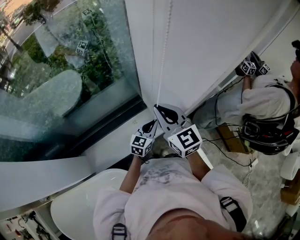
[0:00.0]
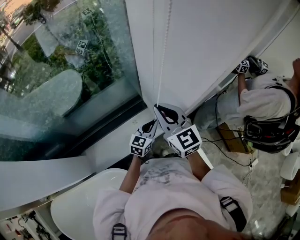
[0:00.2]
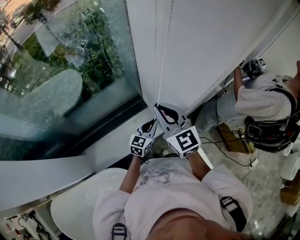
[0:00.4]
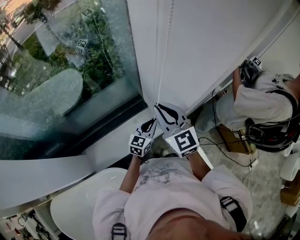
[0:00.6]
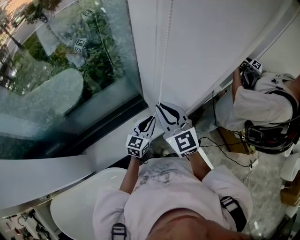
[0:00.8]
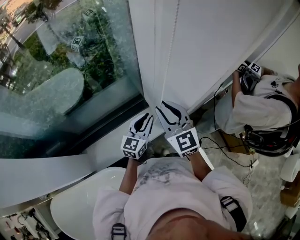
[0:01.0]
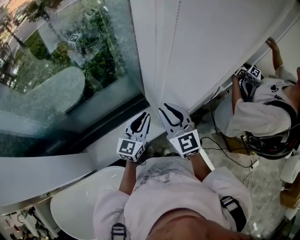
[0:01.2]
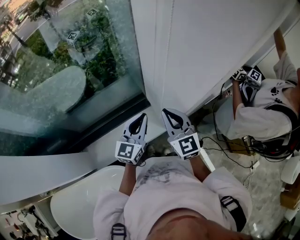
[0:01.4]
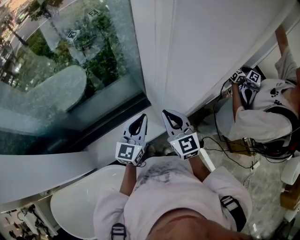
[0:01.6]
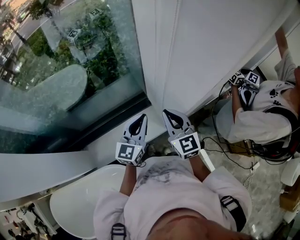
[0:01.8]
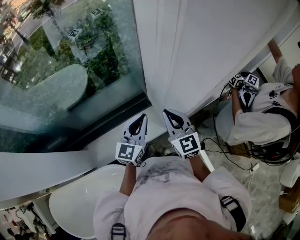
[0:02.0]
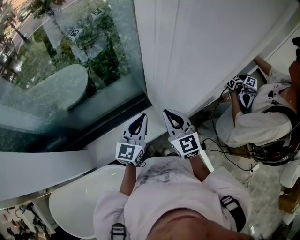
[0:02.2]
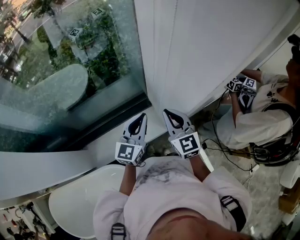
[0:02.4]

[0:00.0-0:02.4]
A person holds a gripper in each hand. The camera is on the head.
0:00.0 to 0:01.2: The left gripper shifts some 15 cm upward and to the left.
0:01.2 to 0:02.4: The grippers make only small movements.

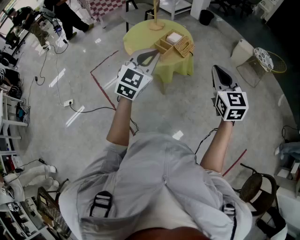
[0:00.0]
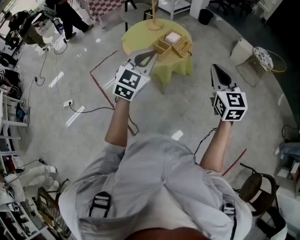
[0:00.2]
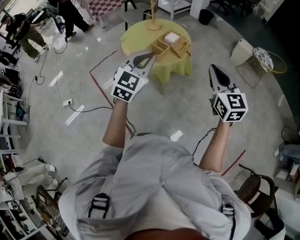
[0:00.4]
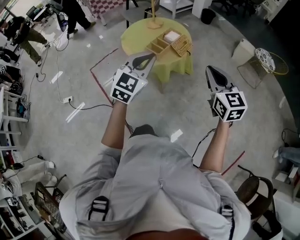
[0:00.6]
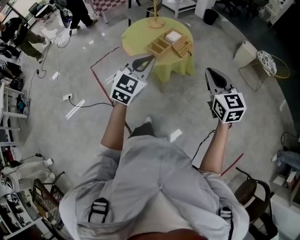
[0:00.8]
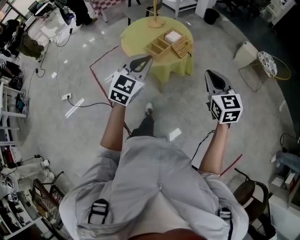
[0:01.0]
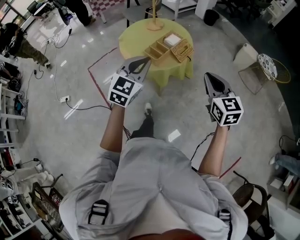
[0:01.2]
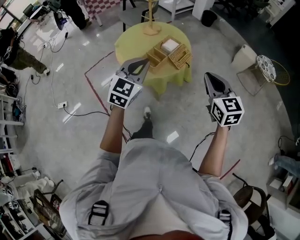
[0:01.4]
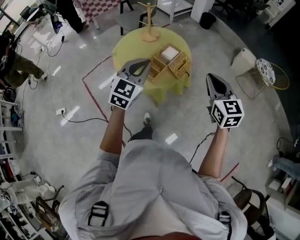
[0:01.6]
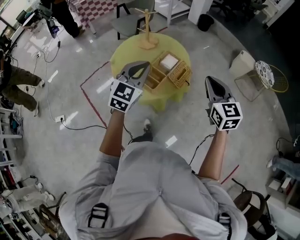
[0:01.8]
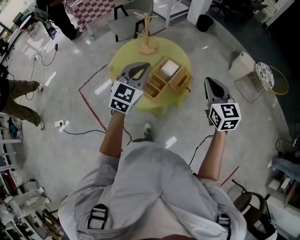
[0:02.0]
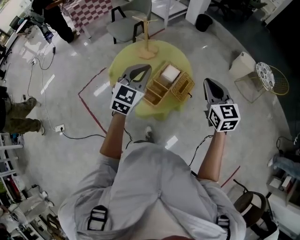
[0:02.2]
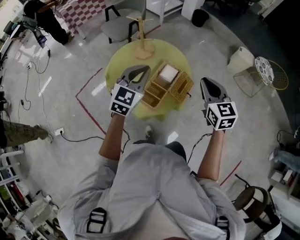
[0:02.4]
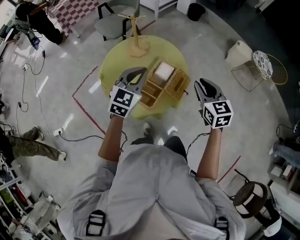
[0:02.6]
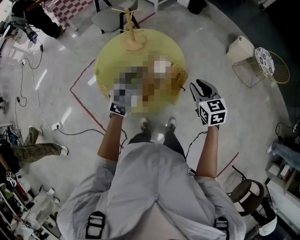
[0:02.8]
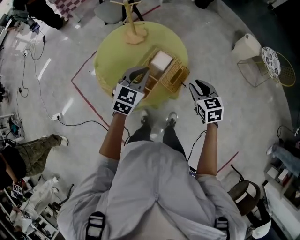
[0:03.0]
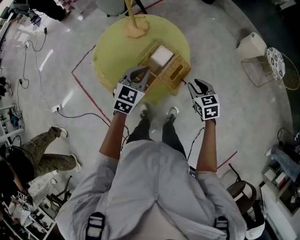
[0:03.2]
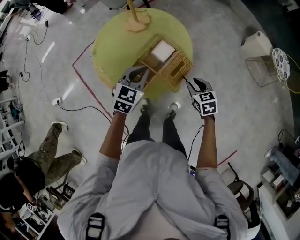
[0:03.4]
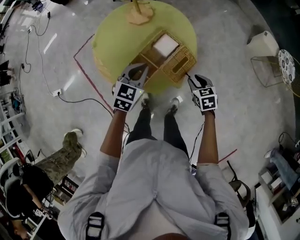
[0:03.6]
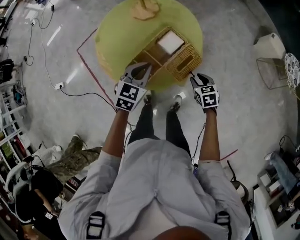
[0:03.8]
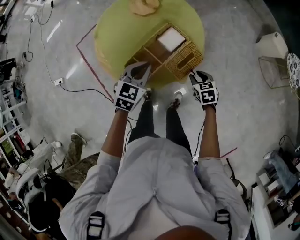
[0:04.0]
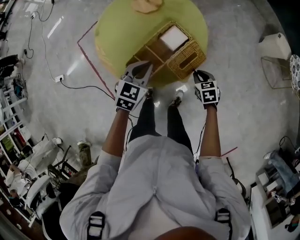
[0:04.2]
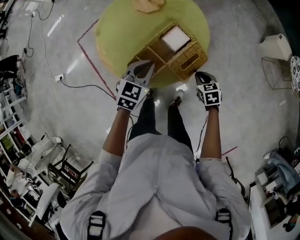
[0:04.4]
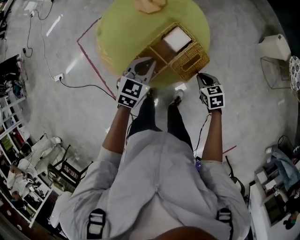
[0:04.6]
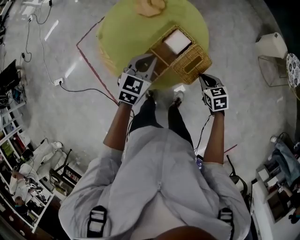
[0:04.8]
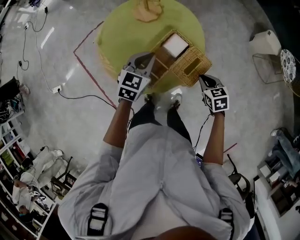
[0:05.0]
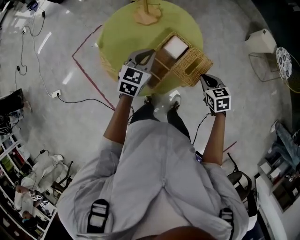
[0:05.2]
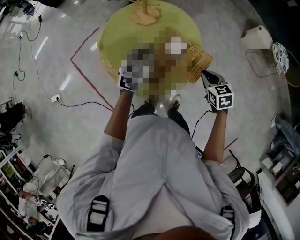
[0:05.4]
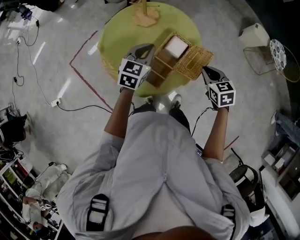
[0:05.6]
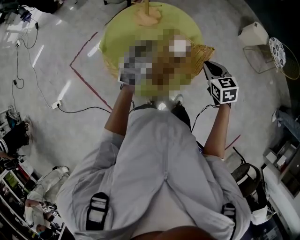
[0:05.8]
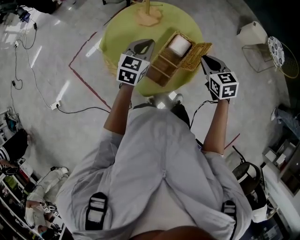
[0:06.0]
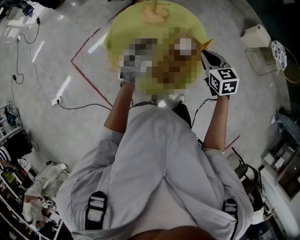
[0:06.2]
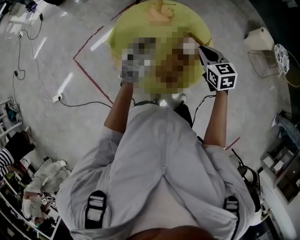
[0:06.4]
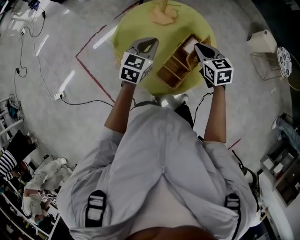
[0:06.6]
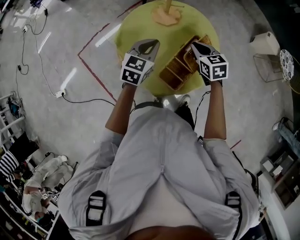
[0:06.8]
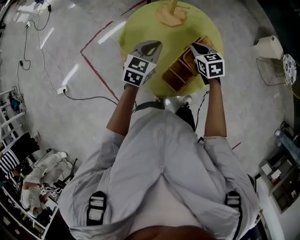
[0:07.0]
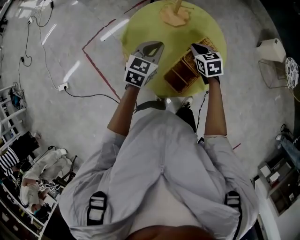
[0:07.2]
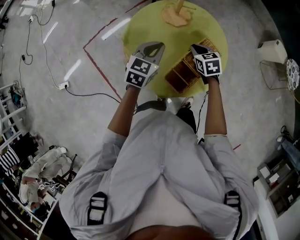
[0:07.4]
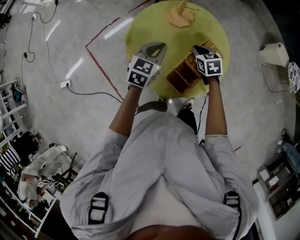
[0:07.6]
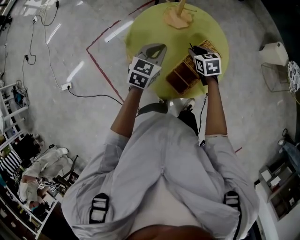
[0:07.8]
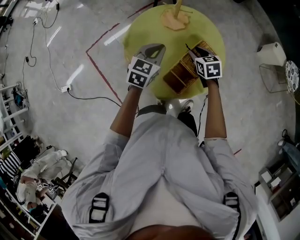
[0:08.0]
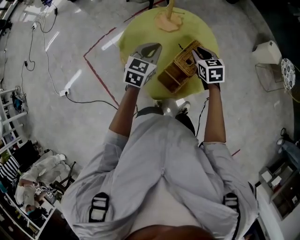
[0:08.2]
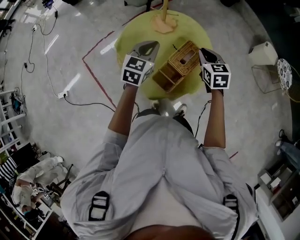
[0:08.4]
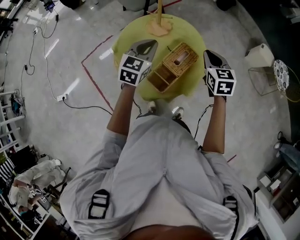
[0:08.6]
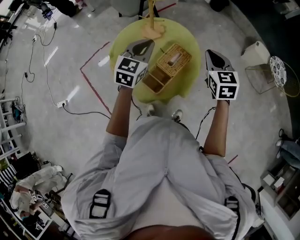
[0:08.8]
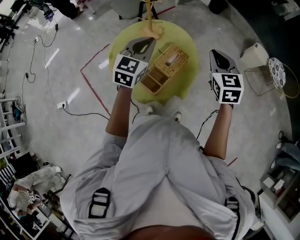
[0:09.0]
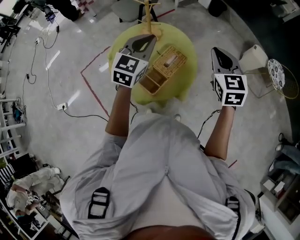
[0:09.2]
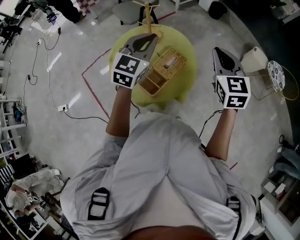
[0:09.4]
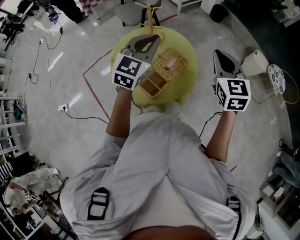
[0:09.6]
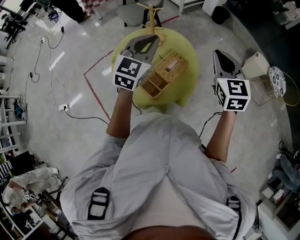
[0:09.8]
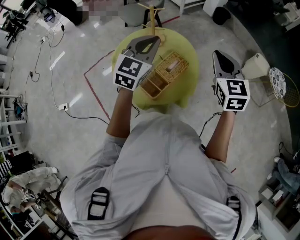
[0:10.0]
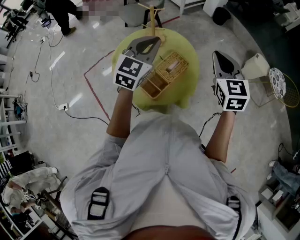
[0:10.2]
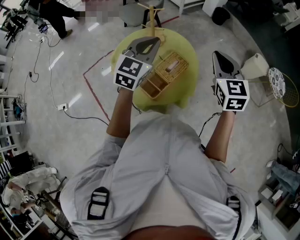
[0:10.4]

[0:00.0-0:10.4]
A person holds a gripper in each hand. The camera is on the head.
0:00.0 to 0:01.4: The right gripper is displaced forward by some 15 cm. The left gripper goes about 15 cm forward and downward.
0:01.4 to 0:03.0: The two grippers go approximately 30 cm forward and downward. The right gripper changes its angle by about 20 degrees, and opens its fingers.
0:03.0 to 0:04.4: The left gripper moves downward, about 10 cm; the right gripper moves downward, approximately 20 cm, and swivels roughly 20 degrees.
0:04.4 to 0:06.0: The right gripper shifts about 25 cm upward and to the left, and turns by approximately 20 degrees; the left gripper shifts roughly 15 cm forward, to the left and upward.
0:06.0 to 0:07.4: The right gripper is displaced to the left, downward and forward by some 20 cm. Meanwhile the left gripper travels to the left by about 5 cm.
0:07.4 to 0:09.0: The left gripper shifts some 20 cm upward and to the right. Meanwhile the right gripper goes about 35 cm upward and to the right, changes its angle by some 30 degrees, and opens, then closes again.
0:09.0 to 0:10.4: The grippers both shift upward by about 5 cm.

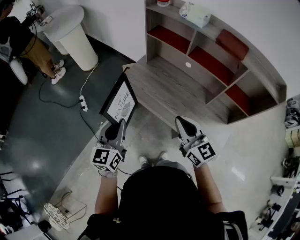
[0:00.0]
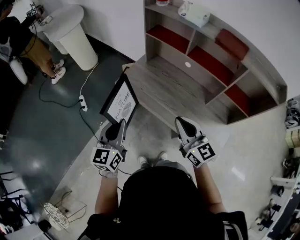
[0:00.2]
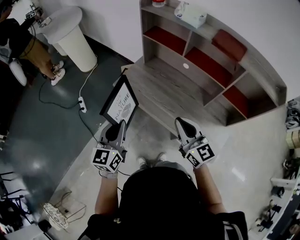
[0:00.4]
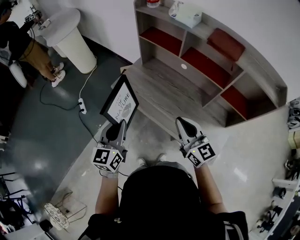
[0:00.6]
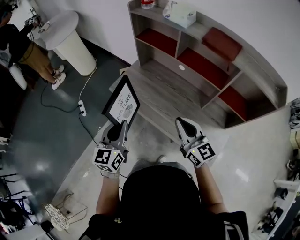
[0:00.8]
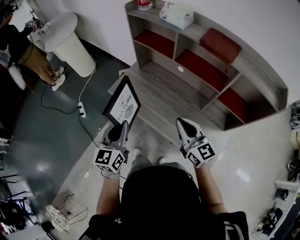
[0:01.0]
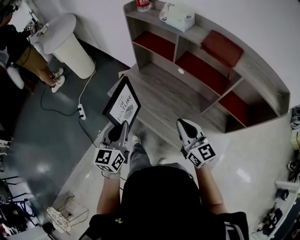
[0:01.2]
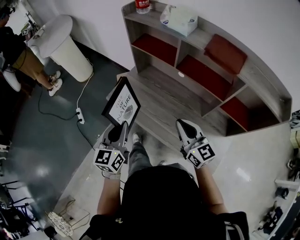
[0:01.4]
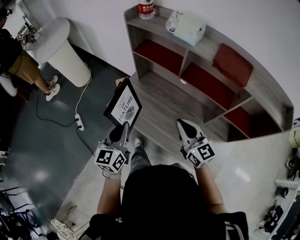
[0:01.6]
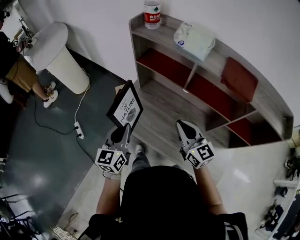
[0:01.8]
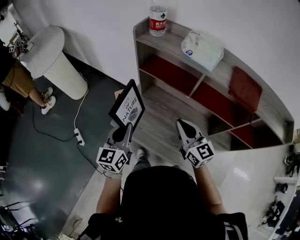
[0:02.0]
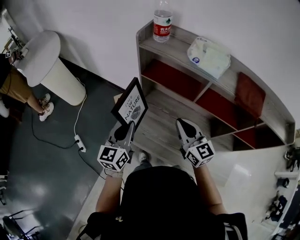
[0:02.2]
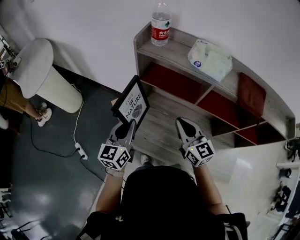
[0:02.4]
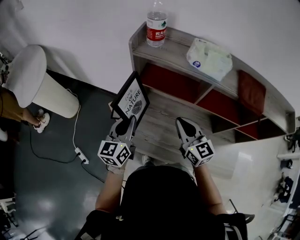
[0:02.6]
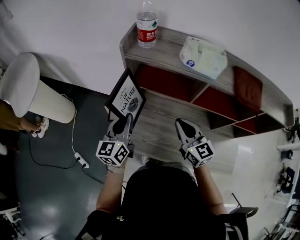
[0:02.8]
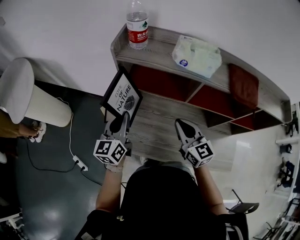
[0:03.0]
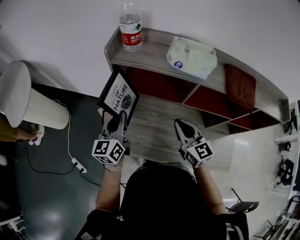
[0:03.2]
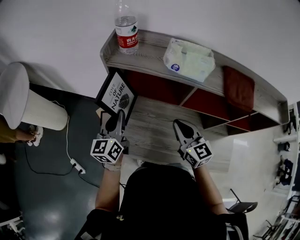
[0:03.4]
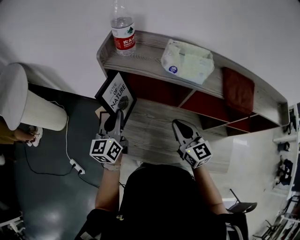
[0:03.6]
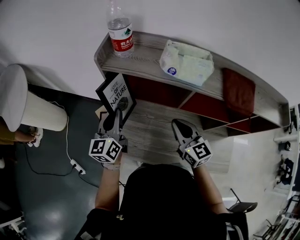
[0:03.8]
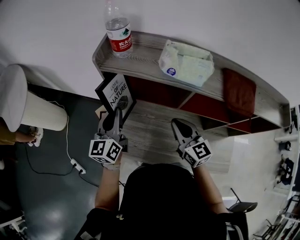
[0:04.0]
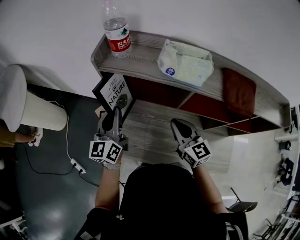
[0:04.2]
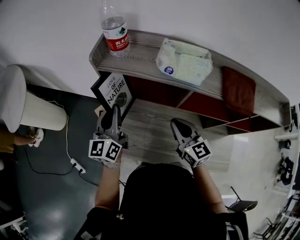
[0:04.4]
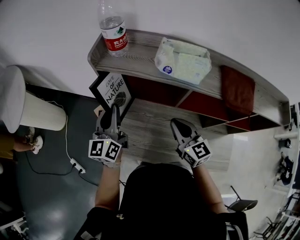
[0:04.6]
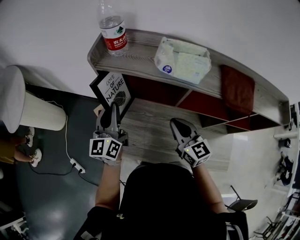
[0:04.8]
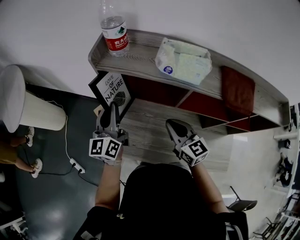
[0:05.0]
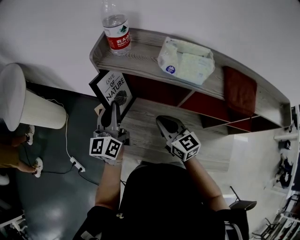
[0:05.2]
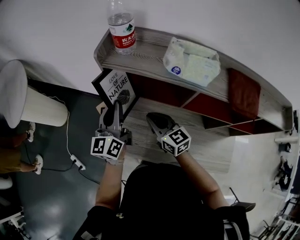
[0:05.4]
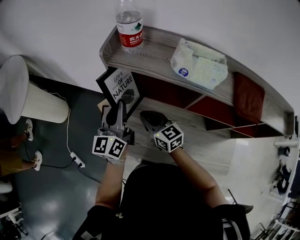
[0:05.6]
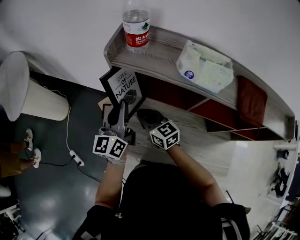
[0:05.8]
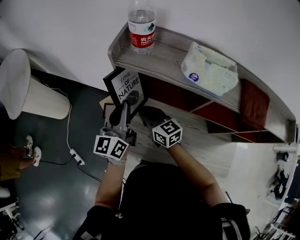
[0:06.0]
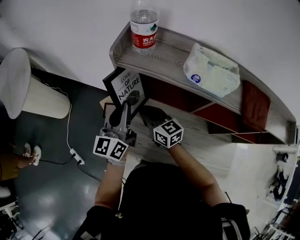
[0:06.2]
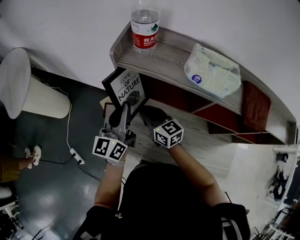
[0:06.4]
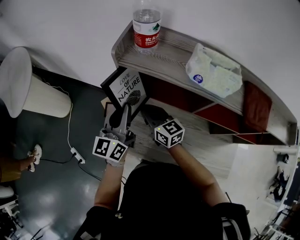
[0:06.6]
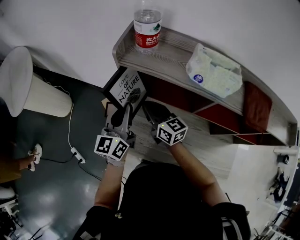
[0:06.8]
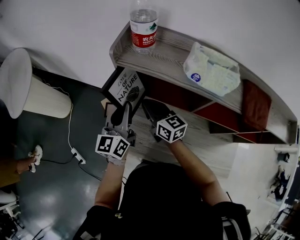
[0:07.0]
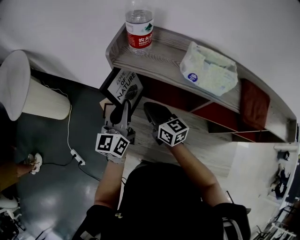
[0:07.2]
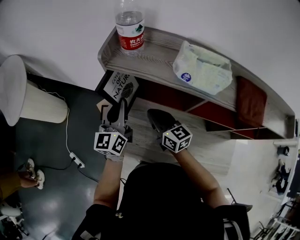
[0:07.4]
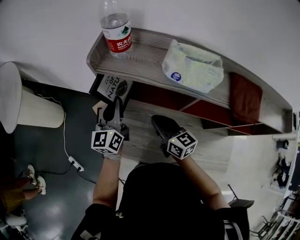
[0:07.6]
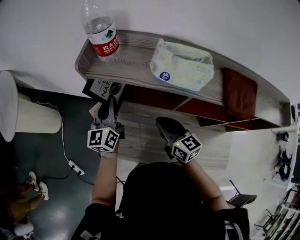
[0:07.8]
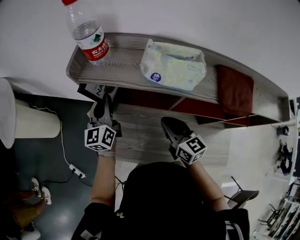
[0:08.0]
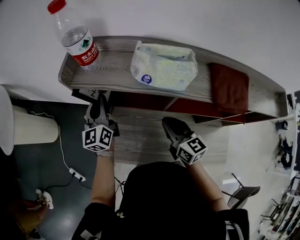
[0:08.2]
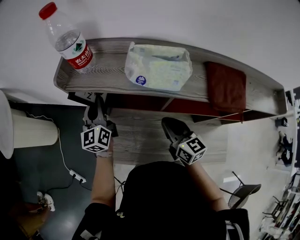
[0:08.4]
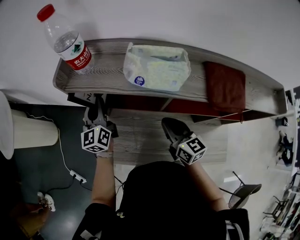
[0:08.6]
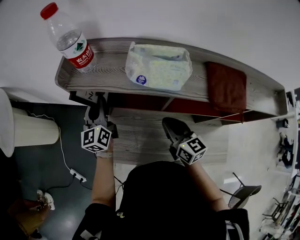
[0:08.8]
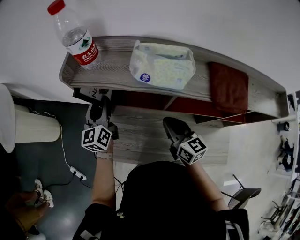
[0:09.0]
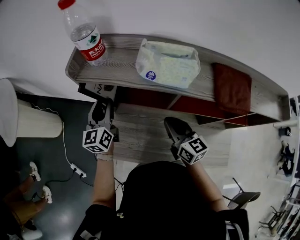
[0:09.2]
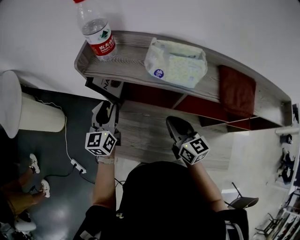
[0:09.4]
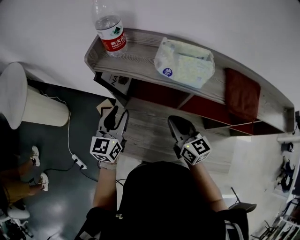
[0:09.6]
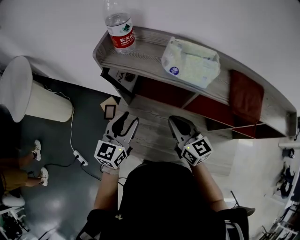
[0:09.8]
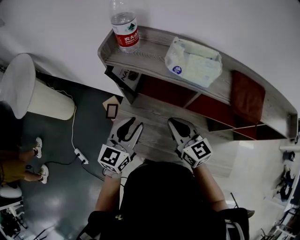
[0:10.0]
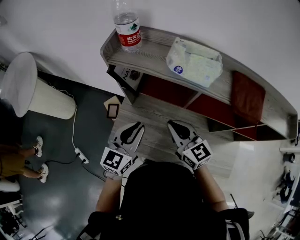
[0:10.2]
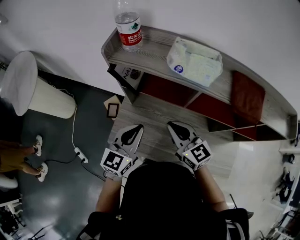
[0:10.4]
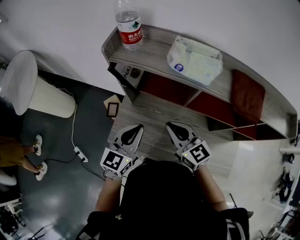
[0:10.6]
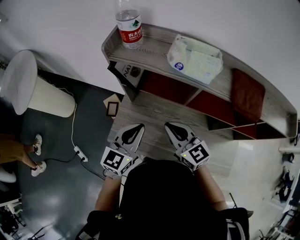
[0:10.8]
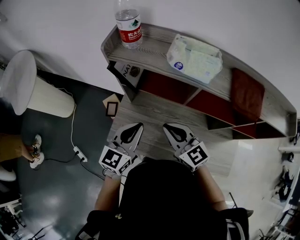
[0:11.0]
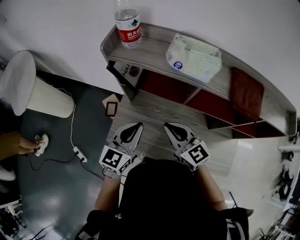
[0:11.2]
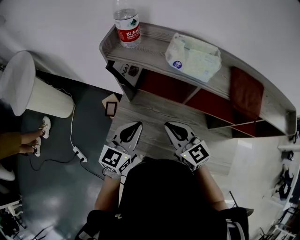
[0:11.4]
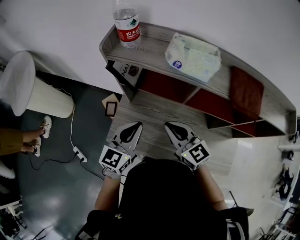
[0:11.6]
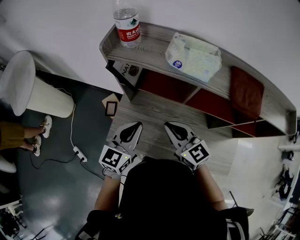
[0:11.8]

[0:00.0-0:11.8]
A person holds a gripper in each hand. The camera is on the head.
0:00.0 to 0:01.4: The grippers both shift forward and to the right by roughly 15 cm.
0:01.4 to 0:03.0: The left gripper goes approximately 30 cm forward, and turns by approximately 20 degrees; the right gripper shifts roughly 25 cm forward and to the left, and rotates roughly 30 degrees.
0:03.0 to 0:04.4: The left gripper travels forward by roughly 5 cm.
0:04.4 to 0:06.0: The right gripper heads to the left and forward, covering some 20 cm, and changes its angle by roughly 20 degrees.
0:06.0 to 0:07.4: The right gripper goes some 5 cm to the right.
0:07.4 to 0:08.8: The left gripper is displaced forward by some 5 cm; the right gripper is displaced to the right and backward by approximately 15 cm.
0:08.8 to 0:10.4: The left gripper moves backward, approximately 20 cm, changes its angle by roughly 30 degrees, and opens, then closes again, while the right gripper goes some 10 cm to the left, and turns by approximately 20 degrees.
0:10.4 to 0:11.8: The grippers make only small movements.
